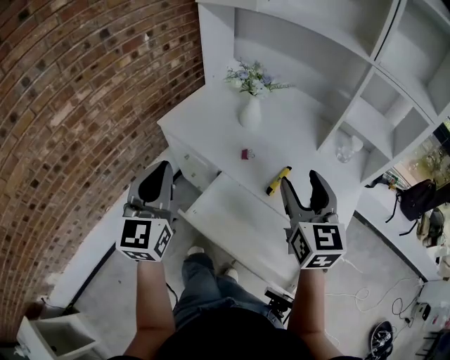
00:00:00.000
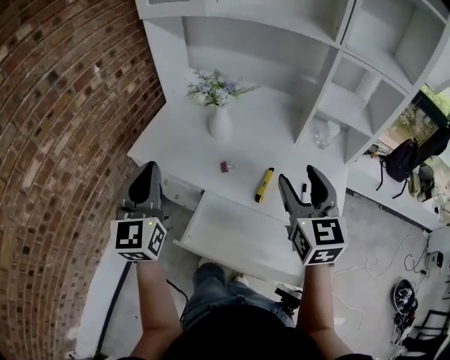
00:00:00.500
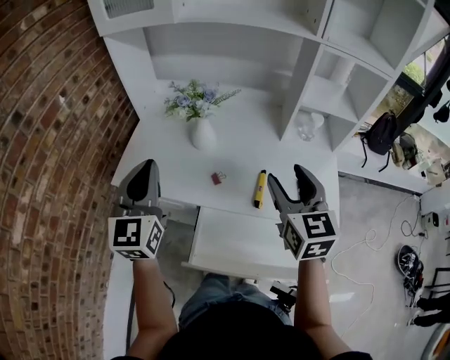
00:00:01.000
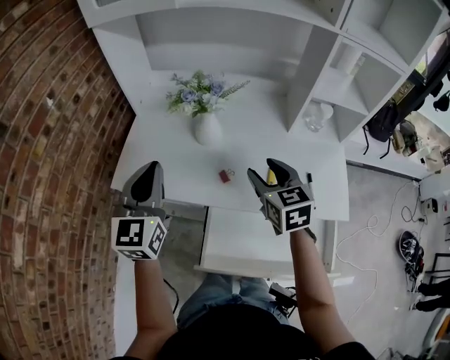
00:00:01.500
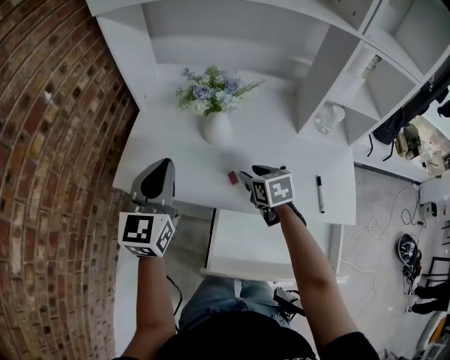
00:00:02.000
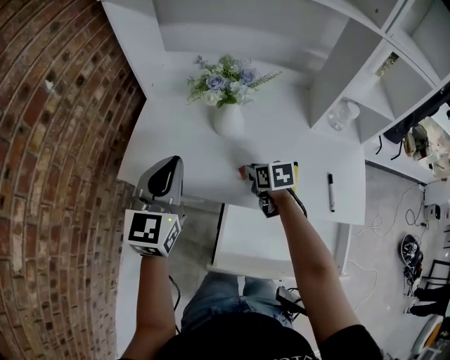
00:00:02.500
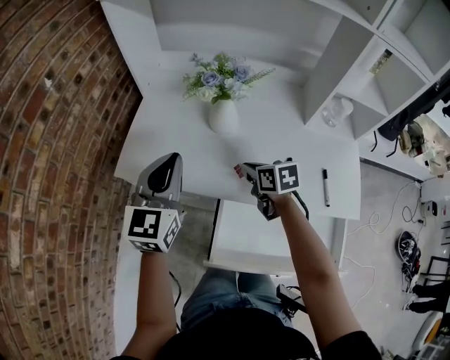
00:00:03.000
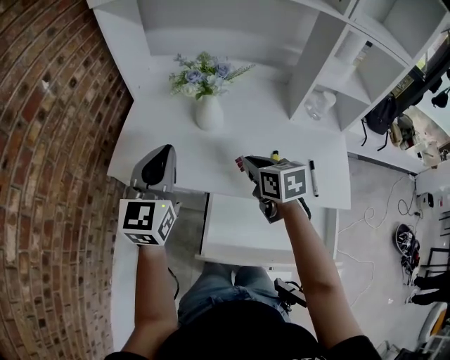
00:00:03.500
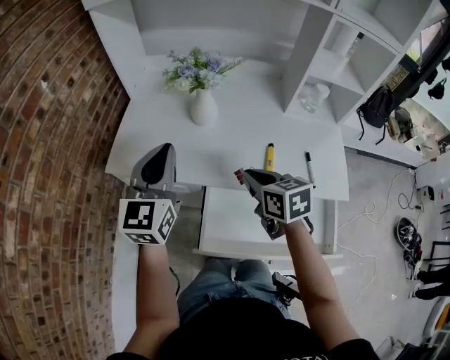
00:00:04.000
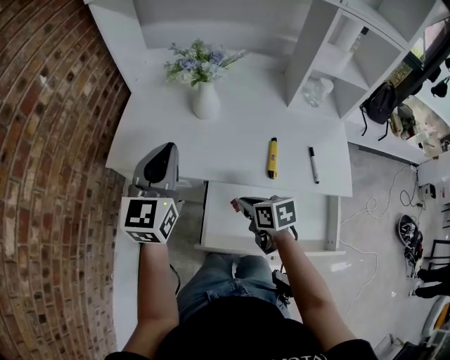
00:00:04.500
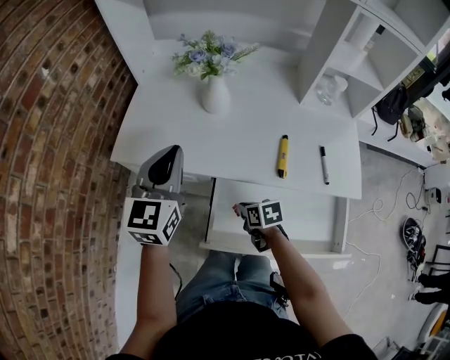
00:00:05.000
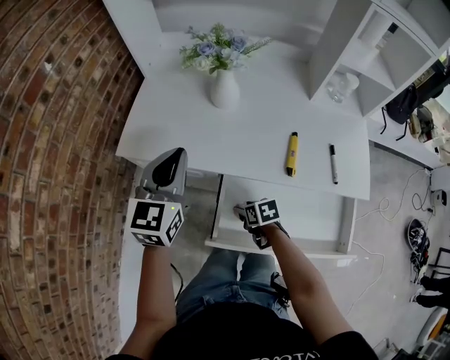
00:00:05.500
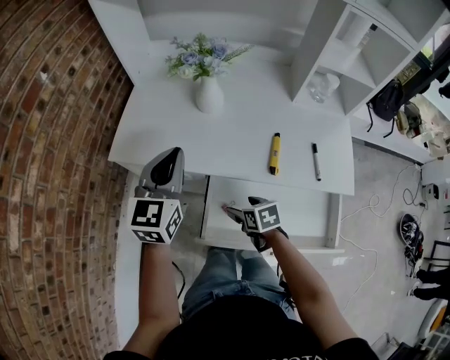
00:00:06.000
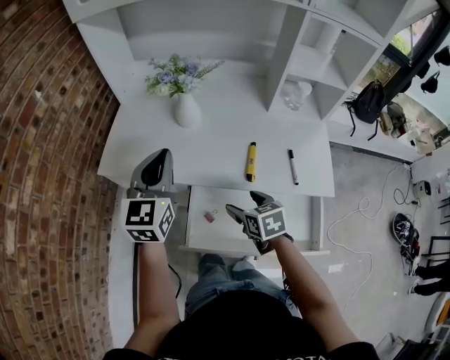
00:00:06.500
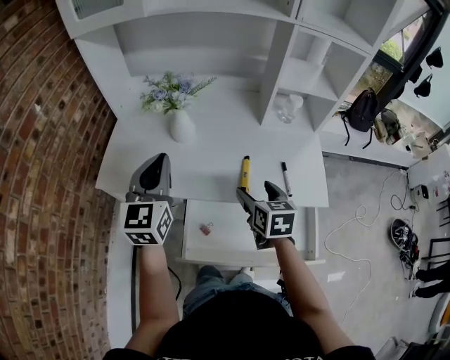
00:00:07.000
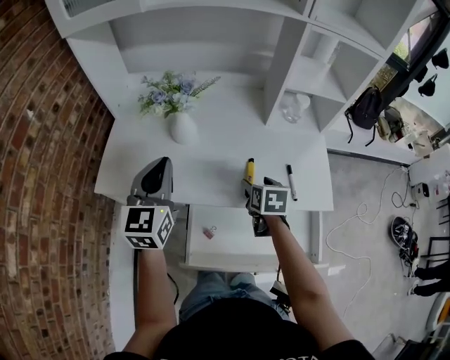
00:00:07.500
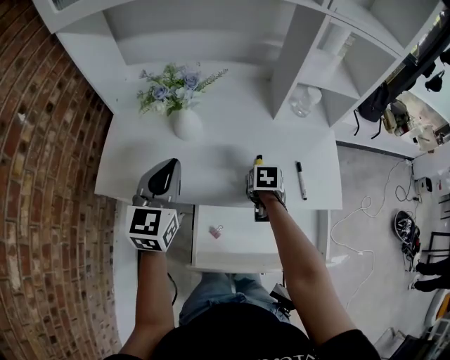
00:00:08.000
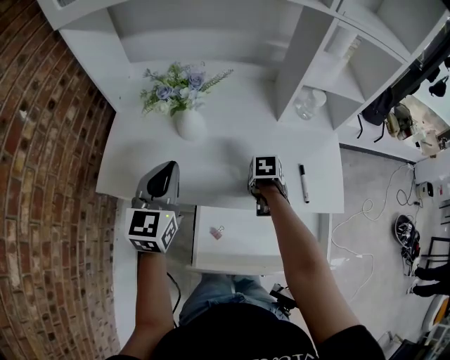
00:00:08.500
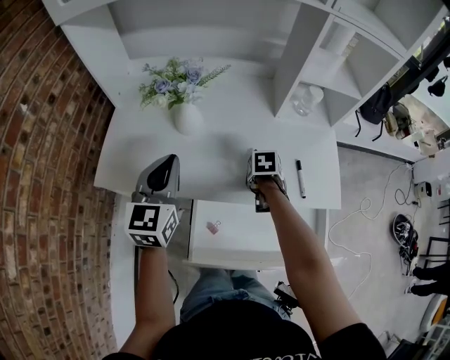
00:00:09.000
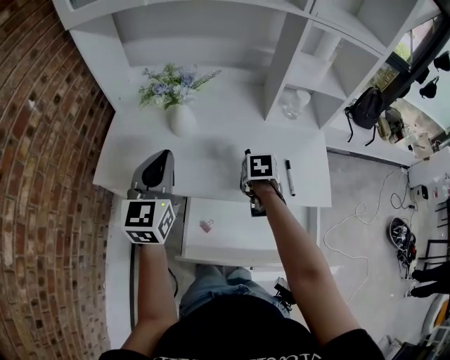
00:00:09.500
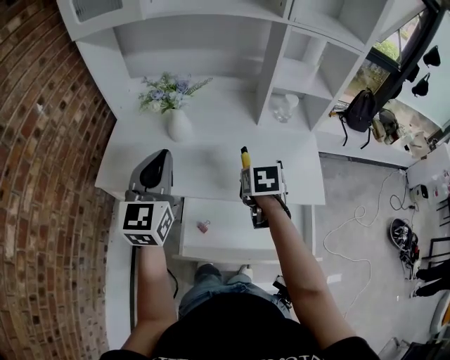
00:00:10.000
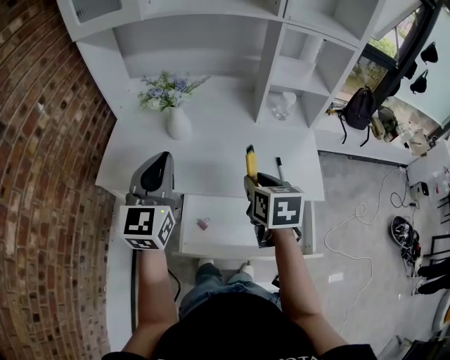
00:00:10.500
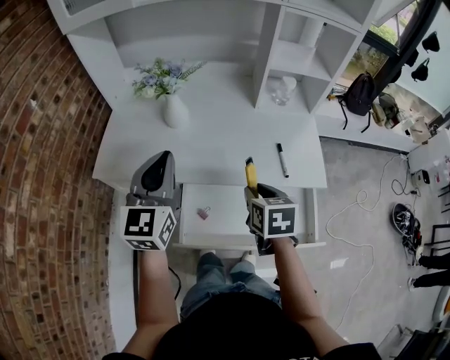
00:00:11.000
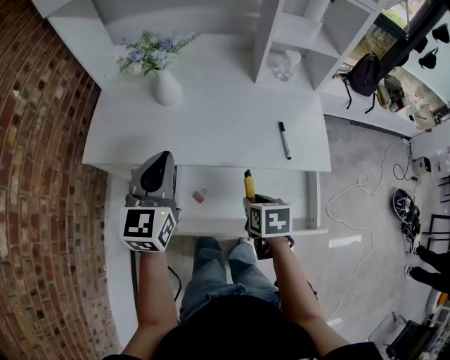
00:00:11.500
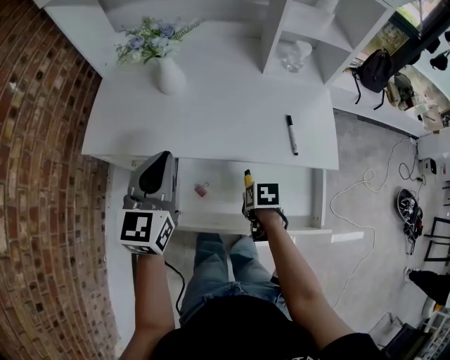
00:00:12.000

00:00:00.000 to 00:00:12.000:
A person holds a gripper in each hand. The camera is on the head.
00:00:00.000 to 00:00:02.000: The left gripper travels forward by approximately 25 cm, and turns by some 30 degrees. The right gripper goes some 35 cm downward, forward and to the left, and angles its fingers downward, by approximately 40 degrees.
00:00:02.000 to 00:00:04.000: The left gripper goes some 5 cm backward. The right gripper is displaced backward and upward by about 15 cm, and closes its fingers.
00:00:04.000 to 00:00:06.000: The right gripper moves downward and backward, about 20 cm, changes its angle by approximately 20 degrees, and opens its fingers.
00:00:06.000 to 00:00:08.000: The right gripper reaches some 20 cm upward, then returns, and swivels roughly 30 degrees, while the left gripper shifts by some 10 cm.
00:00:08.000 to 00:00:10.000: The left gripper travels upward by some 10 cm; the right gripper goes roughly 15 cm upward, and closes up.
00:00:10.000 to 00:00:12.000: The right gripper heads downward and backward, covering about 25 cm, and swivels some 30 degrees; the left gripper shifts roughly 10 cm downward and backward.

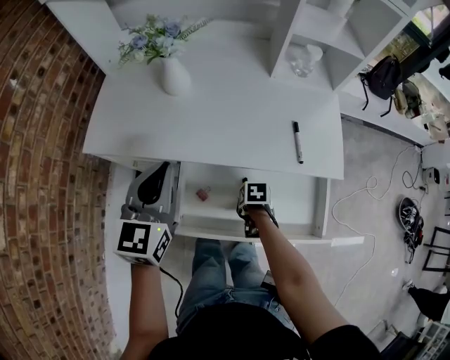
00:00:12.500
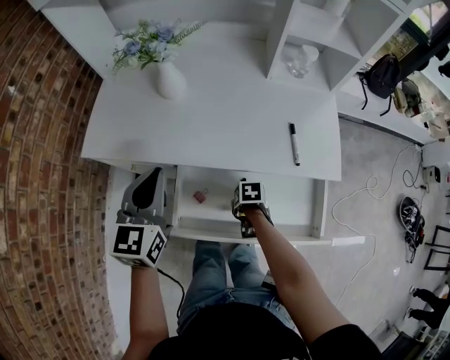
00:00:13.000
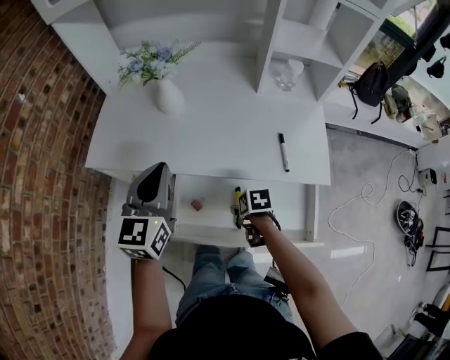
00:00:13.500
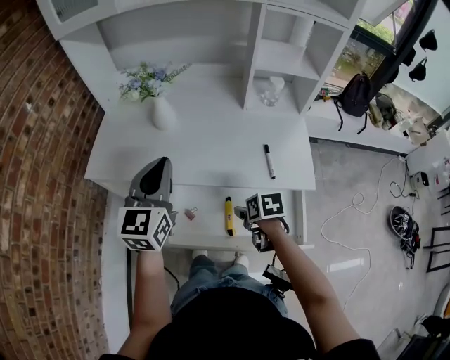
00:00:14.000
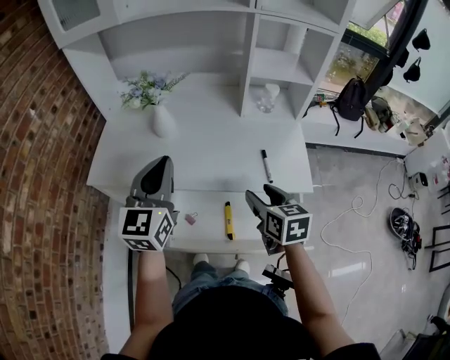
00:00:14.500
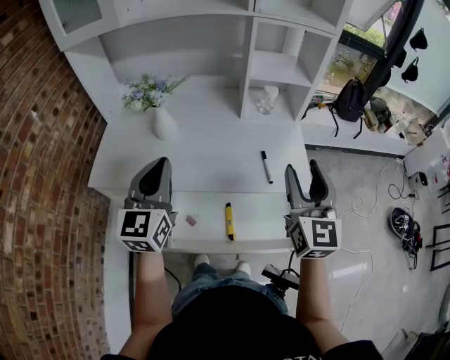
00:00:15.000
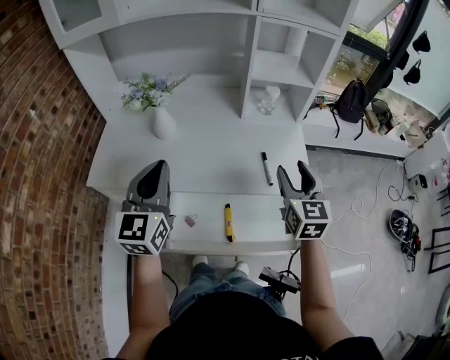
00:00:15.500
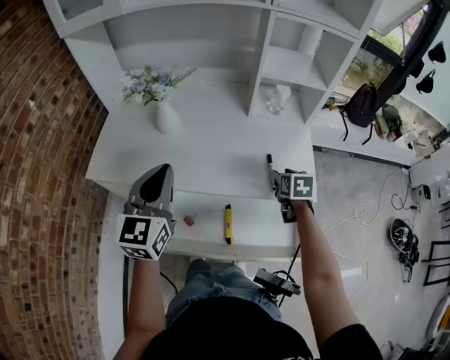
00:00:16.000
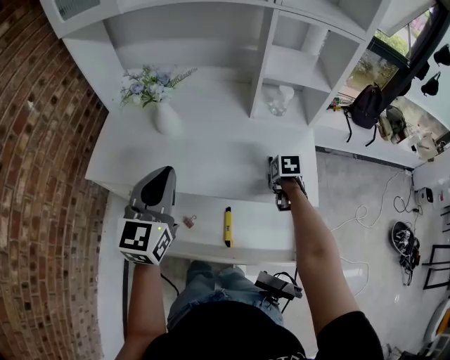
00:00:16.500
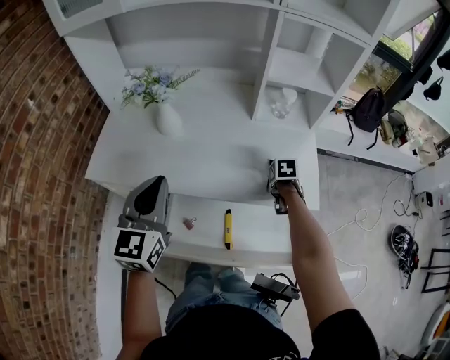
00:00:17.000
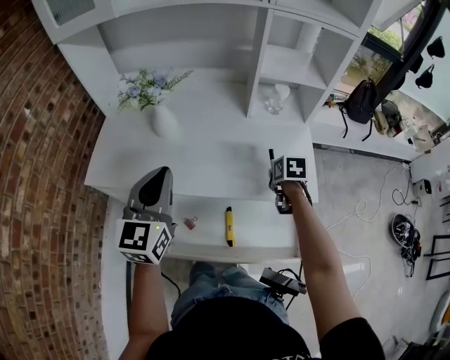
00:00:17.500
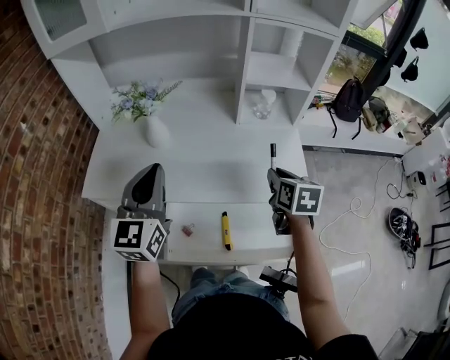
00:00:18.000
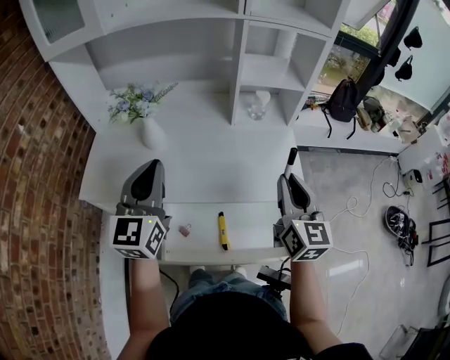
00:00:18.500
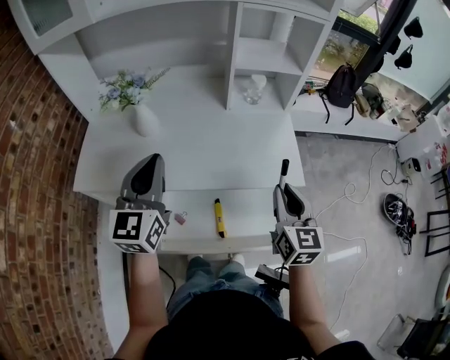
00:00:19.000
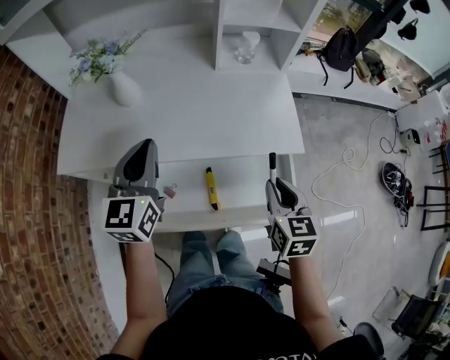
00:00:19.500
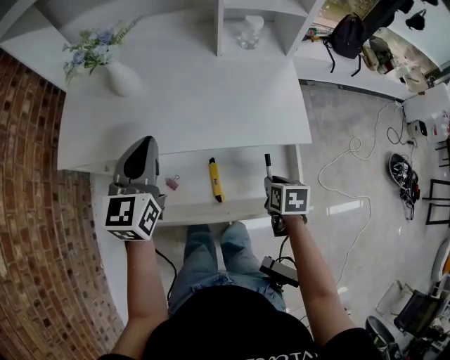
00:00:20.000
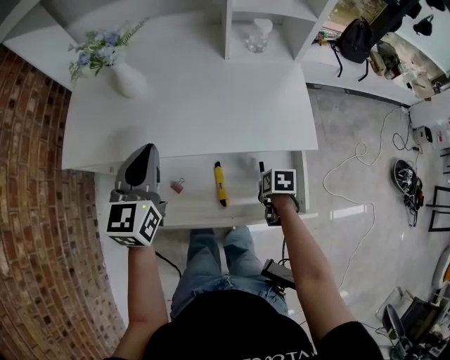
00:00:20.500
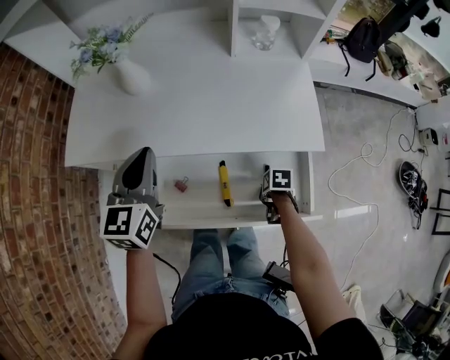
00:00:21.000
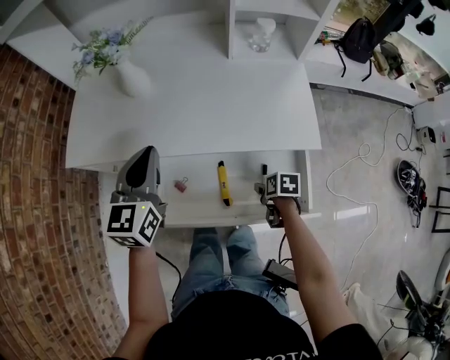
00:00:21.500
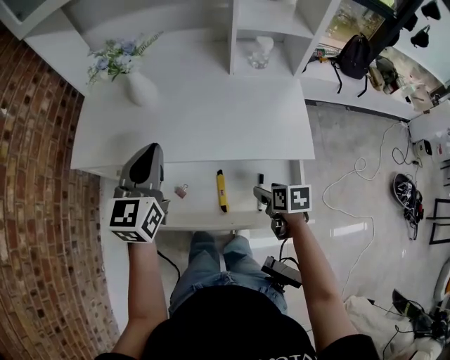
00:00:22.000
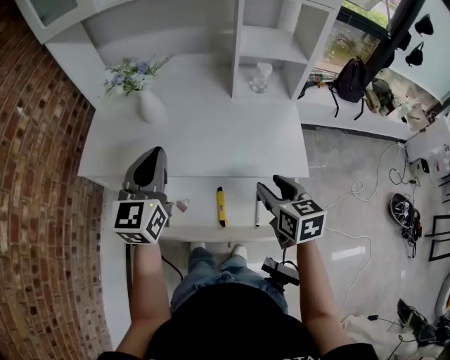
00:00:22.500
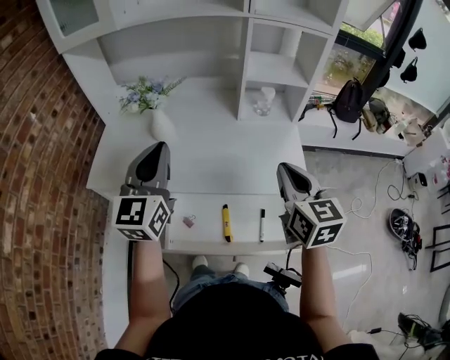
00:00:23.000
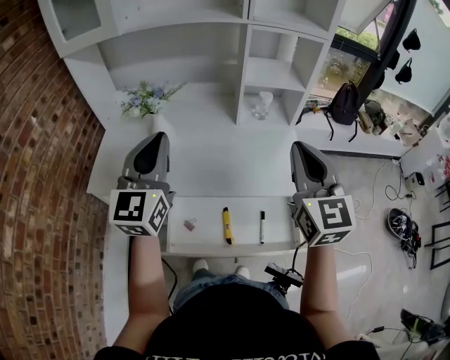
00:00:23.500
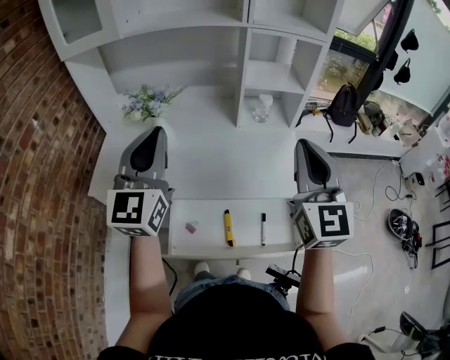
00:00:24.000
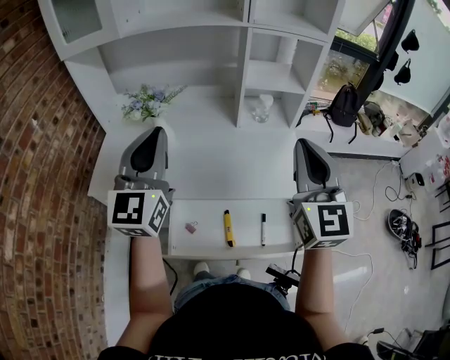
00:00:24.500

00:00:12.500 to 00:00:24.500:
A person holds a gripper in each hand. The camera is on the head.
00:00:12.500 to 00:00:14.500: The left gripper shifts about 10 cm upward, while the right gripper is displaced upward by approximately 30 cm, and tips its fingers upward by about 50 degrees.
00:00:14.500 to 00:00:16.500: The right gripper goes about 25 cm downward, forward and to the right, and tilts its fingers approximately 40 degrees downward.
00:00:16.500 to 00:00:18.500: The right gripper goes about 30 cm upward and backward, and points its fingers roughly 60 degrees further upward.
00:00:18.500 to 00:00:20.500: The right gripper shifts approximately 40 cm downward, and points its fingers some 70 degrees further downward, while the left gripper is displaced downward by roughly 10 cm.
00:00:20.500 to 00:00:22.500: The right gripper travels upward by roughly 25 cm, and angles its fingers upward, by some 40 degrees. The left gripper moves upward, approximately 10 cm.
00:00:22.500 to 00:00:24.500: The left gripper shifts roughly 15 cm upward. Meanwhile the right gripper shifts approximately 25 cm upward, tips its fingers upward by approximately 40 degrees, and closes up.

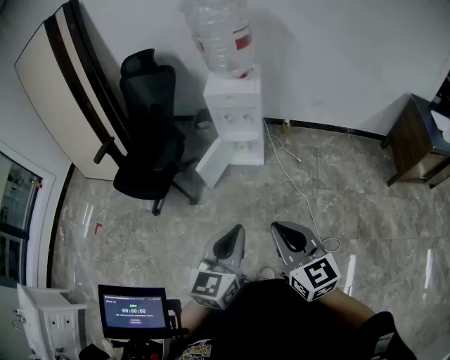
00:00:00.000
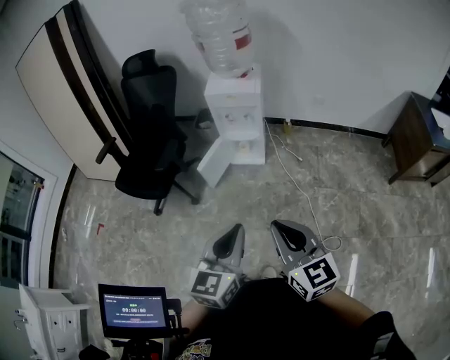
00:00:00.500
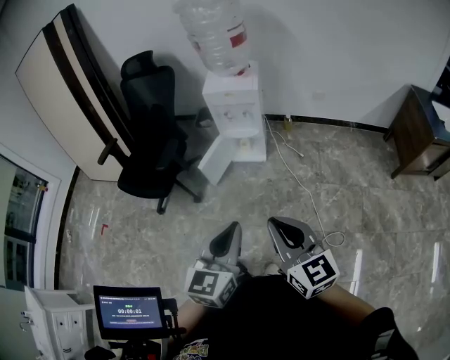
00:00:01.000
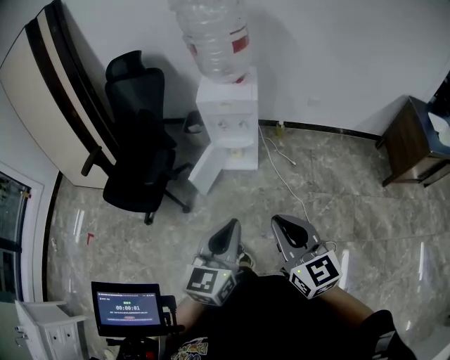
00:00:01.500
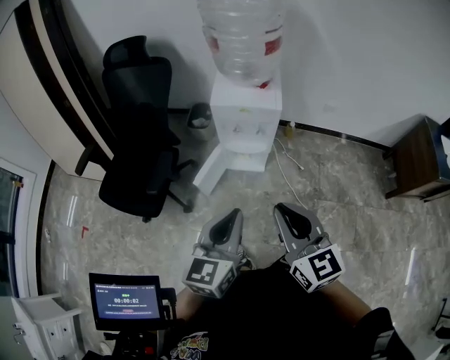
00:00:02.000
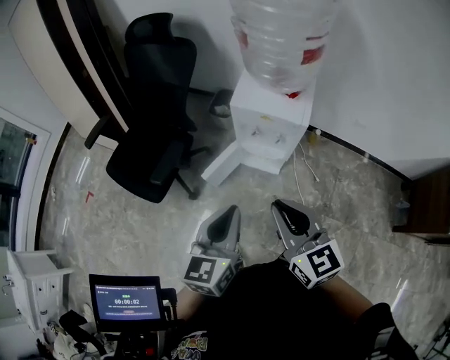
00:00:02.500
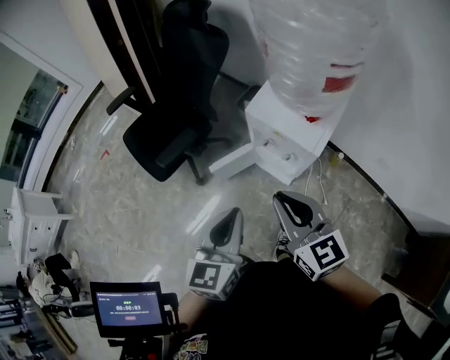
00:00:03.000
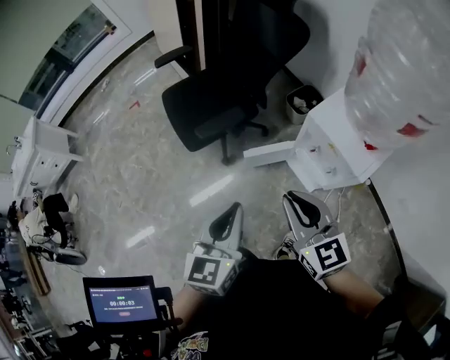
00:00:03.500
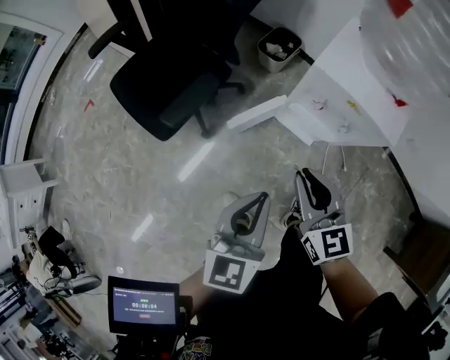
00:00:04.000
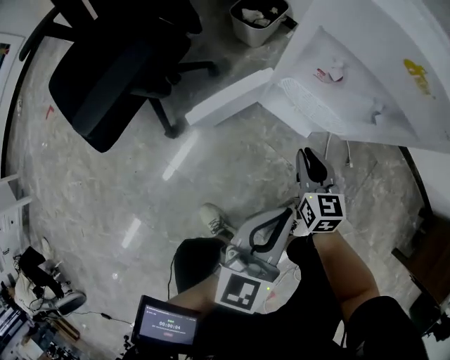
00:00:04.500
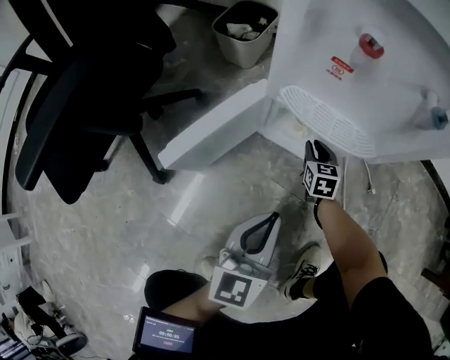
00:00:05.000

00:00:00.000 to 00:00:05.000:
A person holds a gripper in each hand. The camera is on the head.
00:00:00.000 to 00:00:02.500: Both grippers travel together forward, some 35 cm.
00:00:02.500 to 00:00:05.000: The two grippers go approximately 70 cm downward. The right gripper turns by roughly 30 degrees.
